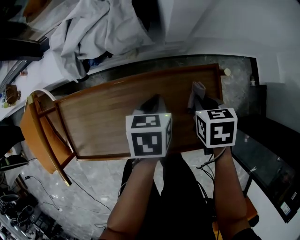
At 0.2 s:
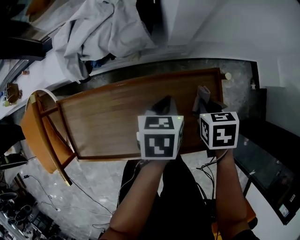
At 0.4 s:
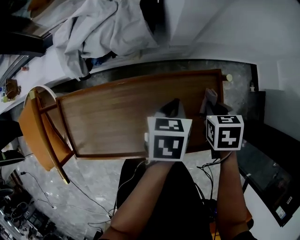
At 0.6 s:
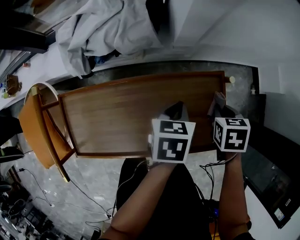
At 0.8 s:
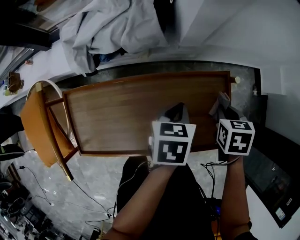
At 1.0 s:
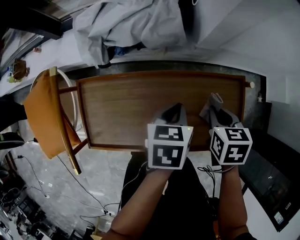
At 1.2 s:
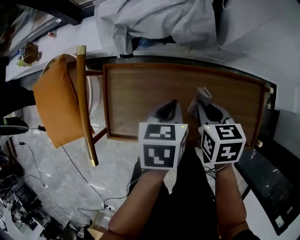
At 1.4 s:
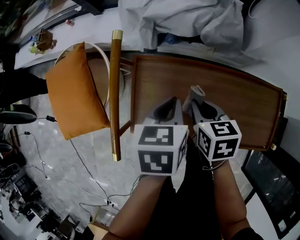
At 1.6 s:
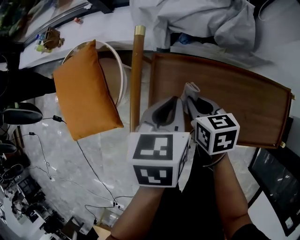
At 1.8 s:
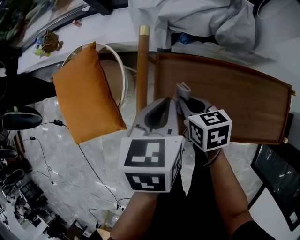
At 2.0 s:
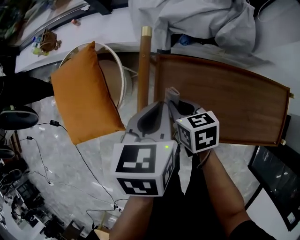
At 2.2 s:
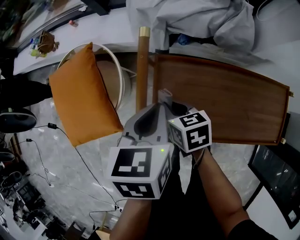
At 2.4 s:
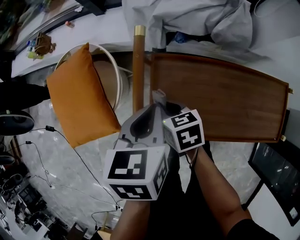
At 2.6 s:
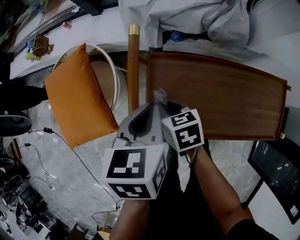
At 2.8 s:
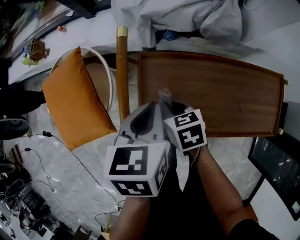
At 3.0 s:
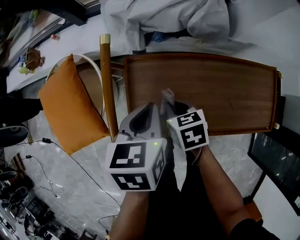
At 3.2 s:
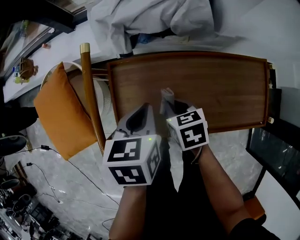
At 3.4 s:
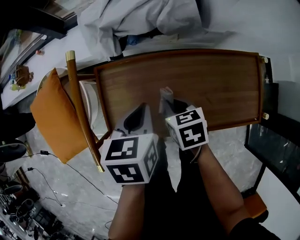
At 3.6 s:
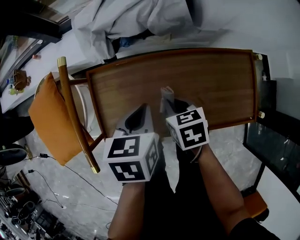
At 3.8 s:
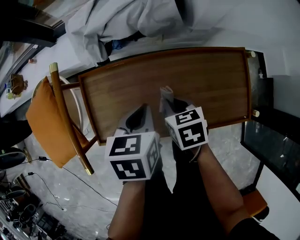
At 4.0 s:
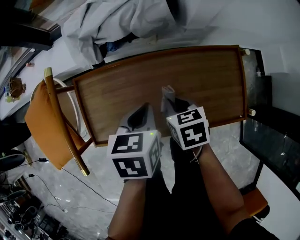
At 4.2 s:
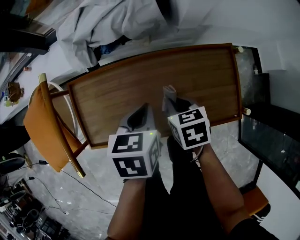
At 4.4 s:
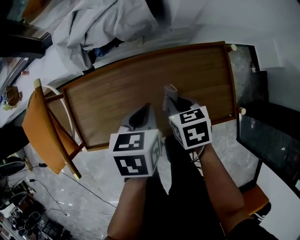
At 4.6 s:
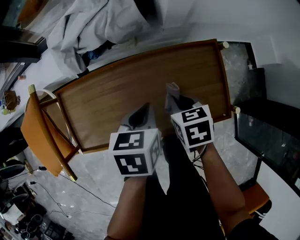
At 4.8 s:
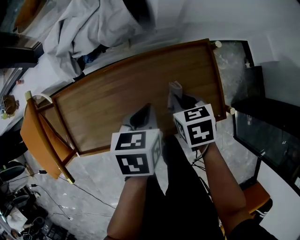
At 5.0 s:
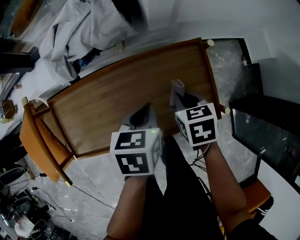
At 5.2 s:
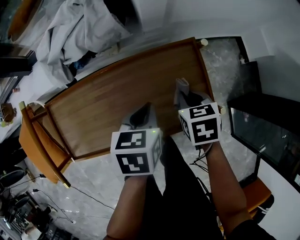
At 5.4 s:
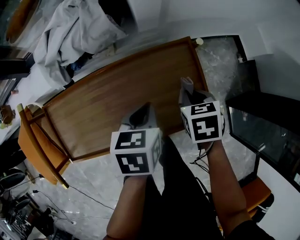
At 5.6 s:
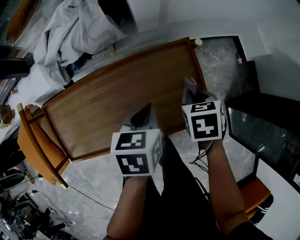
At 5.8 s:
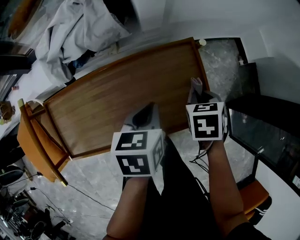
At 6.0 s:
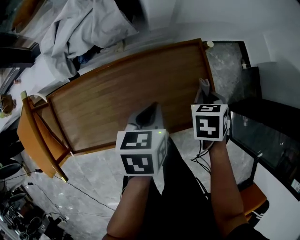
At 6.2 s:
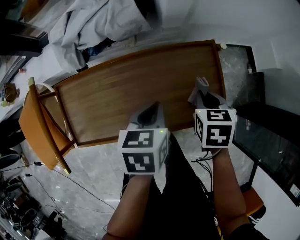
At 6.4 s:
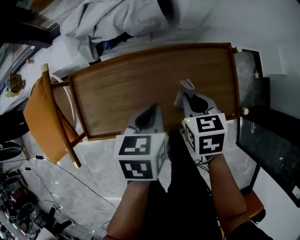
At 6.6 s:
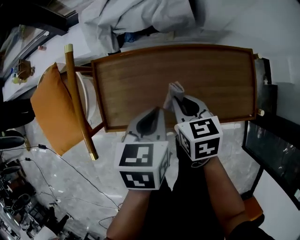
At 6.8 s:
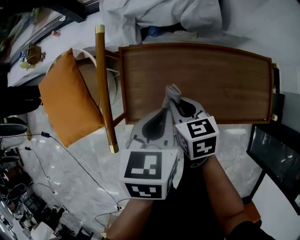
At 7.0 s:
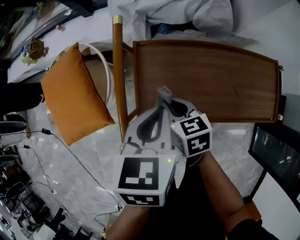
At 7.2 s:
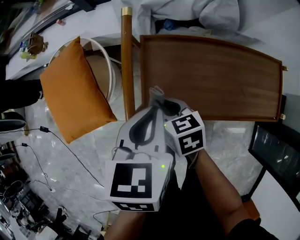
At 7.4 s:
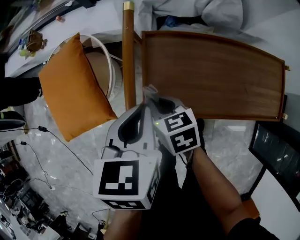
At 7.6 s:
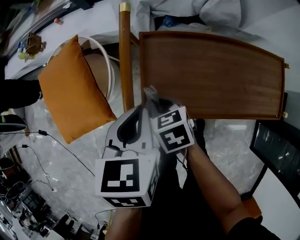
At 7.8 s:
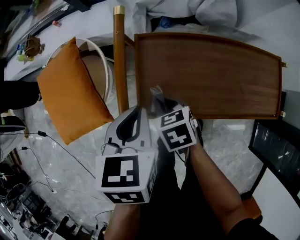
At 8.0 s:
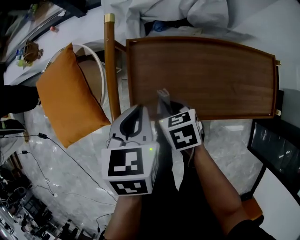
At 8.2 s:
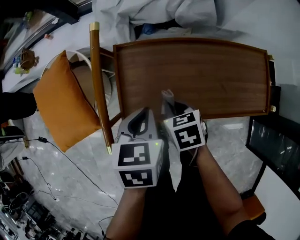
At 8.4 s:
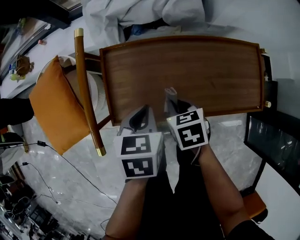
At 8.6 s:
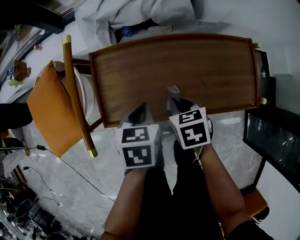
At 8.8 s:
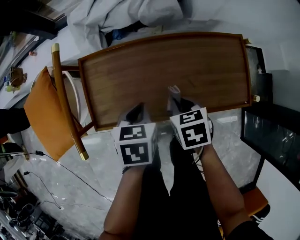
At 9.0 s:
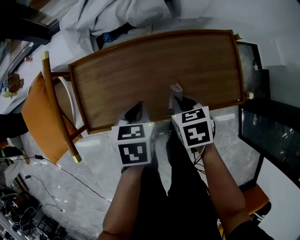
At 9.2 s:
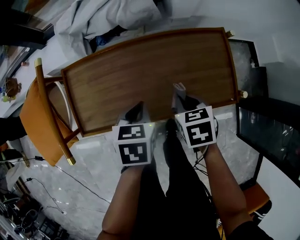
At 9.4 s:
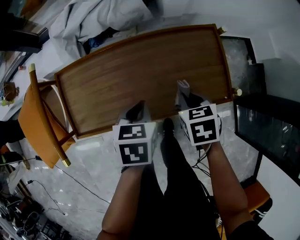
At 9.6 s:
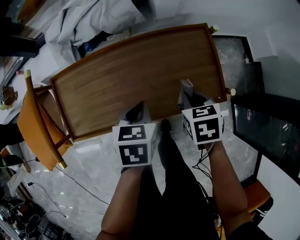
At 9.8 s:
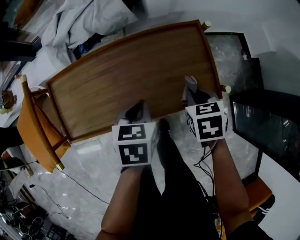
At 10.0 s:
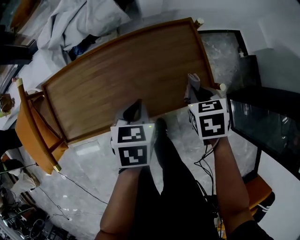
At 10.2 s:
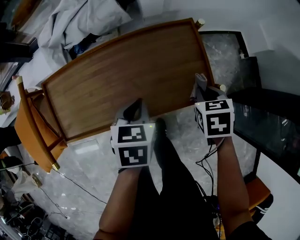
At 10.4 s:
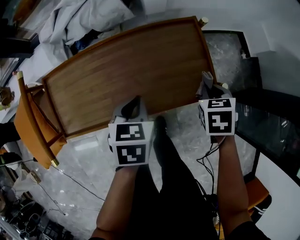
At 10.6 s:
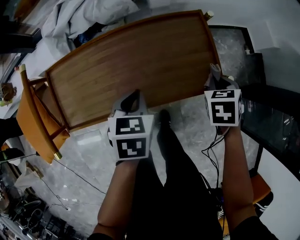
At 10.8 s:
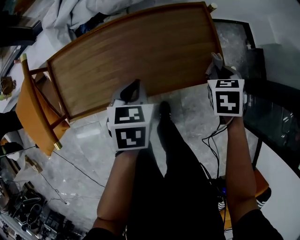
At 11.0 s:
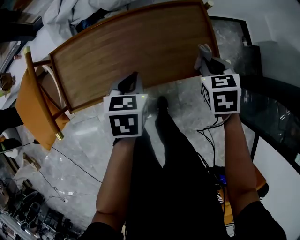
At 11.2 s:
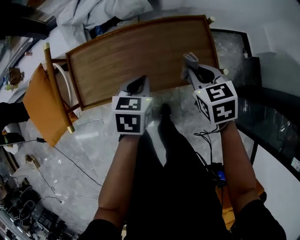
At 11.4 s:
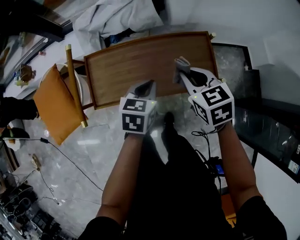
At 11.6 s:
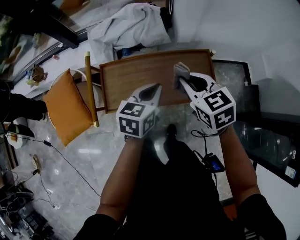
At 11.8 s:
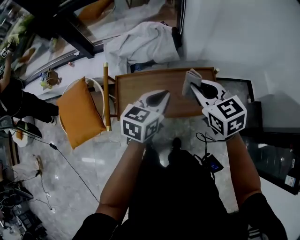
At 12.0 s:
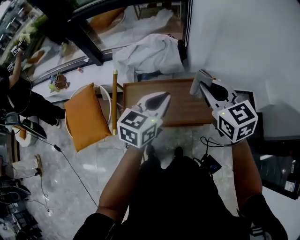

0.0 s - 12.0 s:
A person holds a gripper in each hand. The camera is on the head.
0.0 s - 1.6 s: The left gripper changes place by roughly 35 cm; the right gripper shifts by roughly 40 cm, and swivels approximately 30 degrees.
1.6 s - 3.0 s: The right gripper reaches approximately 10 cm to the left, then returns.
3.0 s - 4.4 s: Both grippers travel together to the right, some 25 cm.
4.4 s - 6.0 s: The right gripper ends up about 20 cm from where it was, and rotates some 30 degrees. Meanwhile the left gripper ends up approximately 10 cm from where it was.
6.0 s - 7.6 s: The two grippers travel together, some 50 cm. The right gripper changes its angle by roughly 50 degrees. Meanwhile the left gripper rotates about 20 degrees.
7.6 s - 9.0 s: The left gripper goes about 25 cm to the right and downward; the right gripper moves to the right, about 30 cm, and swivels roughly 20 degrees.
9.0 s - 10.4 s: The left gripper goes some 15 cm to the right. Meanwhile the right gripper moves to the right, some 25 cm.
10.4 s - 12.0 s: The two grippers go roughly 35 cm upward. The left gripper angles its fingers upward, by roughly 40 degrees. The right gripper angles its fingers upward, by roughly 40 degrees.

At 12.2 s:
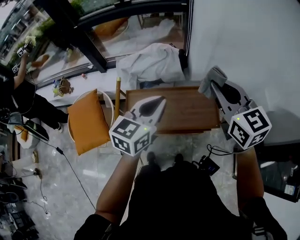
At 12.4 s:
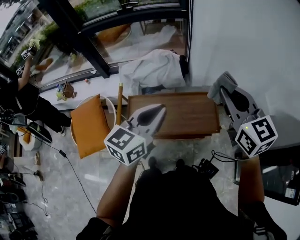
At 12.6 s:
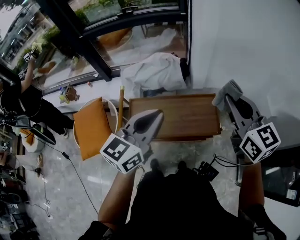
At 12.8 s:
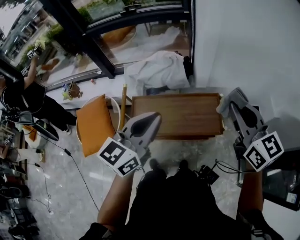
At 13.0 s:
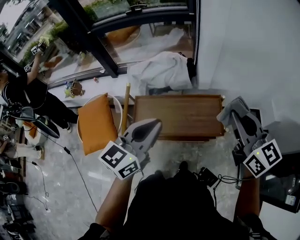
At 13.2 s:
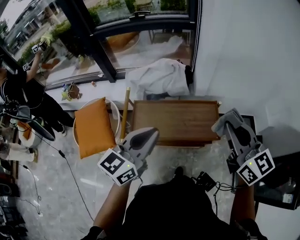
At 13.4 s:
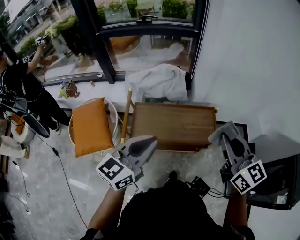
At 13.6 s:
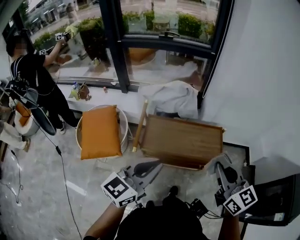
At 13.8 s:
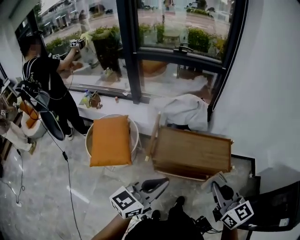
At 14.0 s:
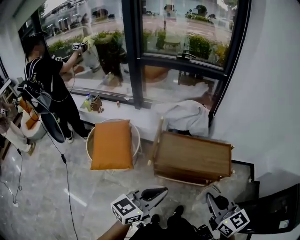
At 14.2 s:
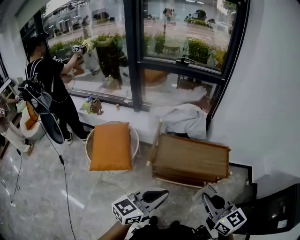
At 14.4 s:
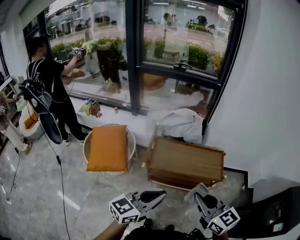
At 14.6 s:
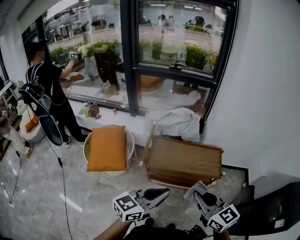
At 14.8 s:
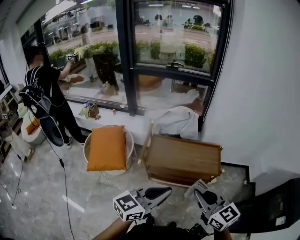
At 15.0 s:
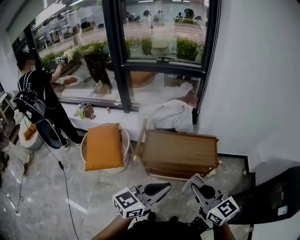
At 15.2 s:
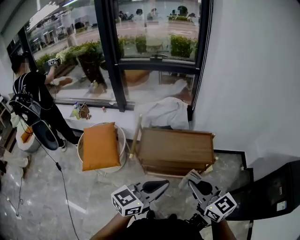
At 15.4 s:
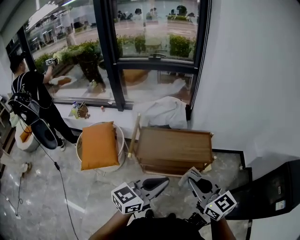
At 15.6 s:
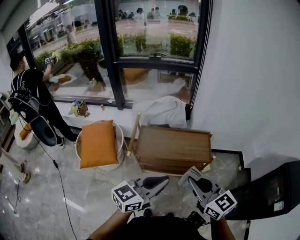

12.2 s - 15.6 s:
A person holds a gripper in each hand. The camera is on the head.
12.2 s - 13.8 s: The left gripper goes roughly 30 cm backward and to the left, while the right gripper moves backward, some 25 cm.
13.8 s - 15.6 s: The left gripper shifts some 15 cm to the right and backward; the right gripper travels backward by about 5 cm.

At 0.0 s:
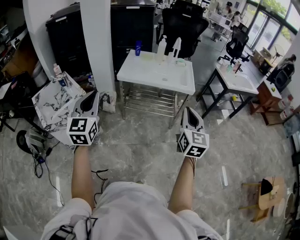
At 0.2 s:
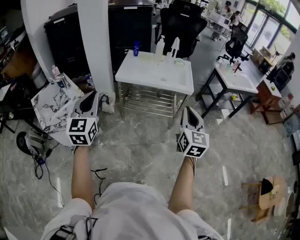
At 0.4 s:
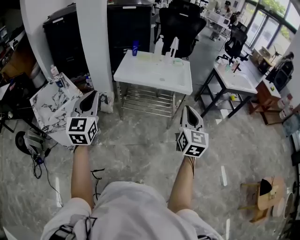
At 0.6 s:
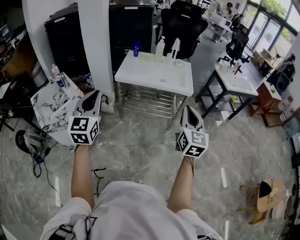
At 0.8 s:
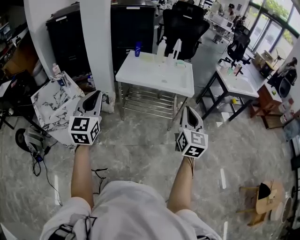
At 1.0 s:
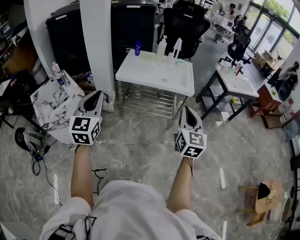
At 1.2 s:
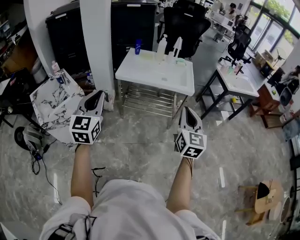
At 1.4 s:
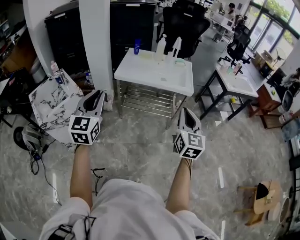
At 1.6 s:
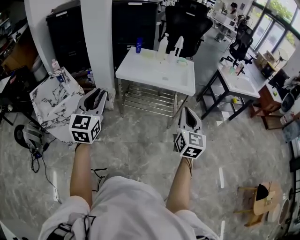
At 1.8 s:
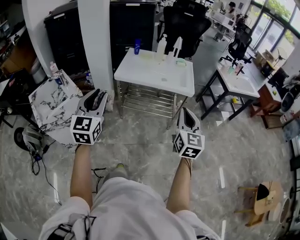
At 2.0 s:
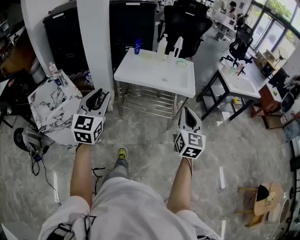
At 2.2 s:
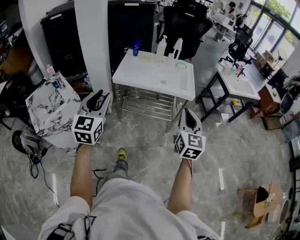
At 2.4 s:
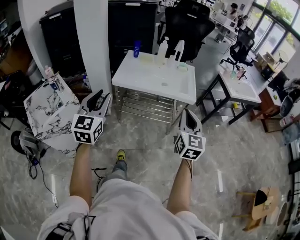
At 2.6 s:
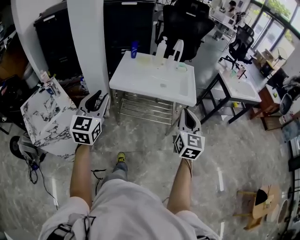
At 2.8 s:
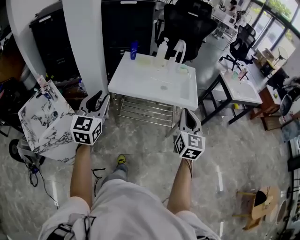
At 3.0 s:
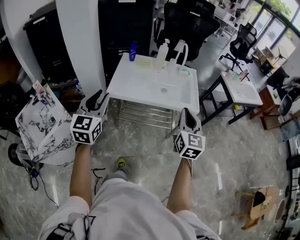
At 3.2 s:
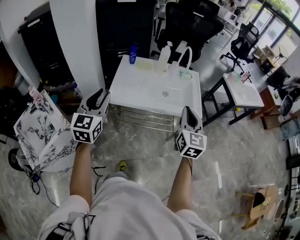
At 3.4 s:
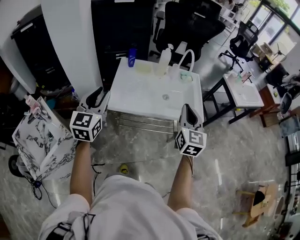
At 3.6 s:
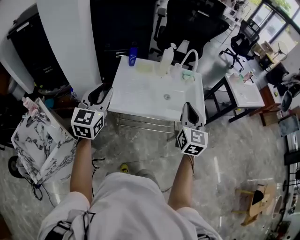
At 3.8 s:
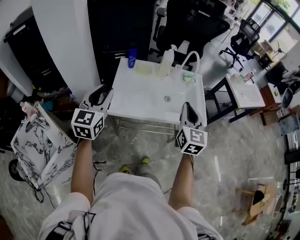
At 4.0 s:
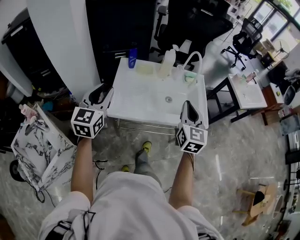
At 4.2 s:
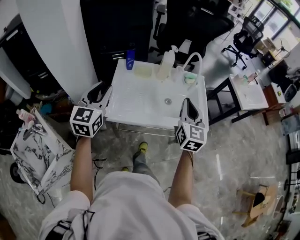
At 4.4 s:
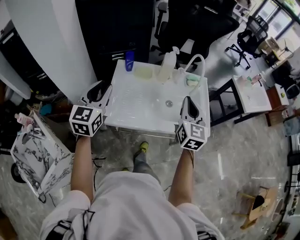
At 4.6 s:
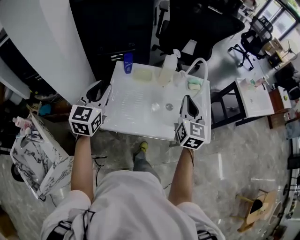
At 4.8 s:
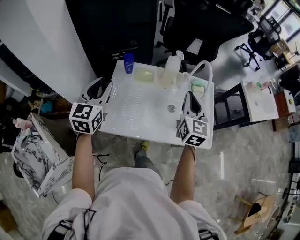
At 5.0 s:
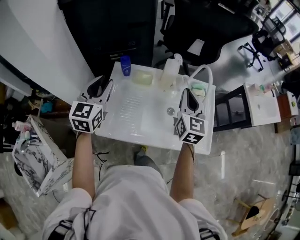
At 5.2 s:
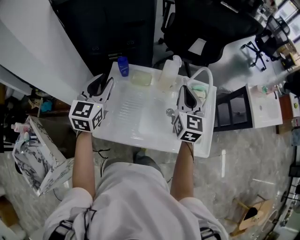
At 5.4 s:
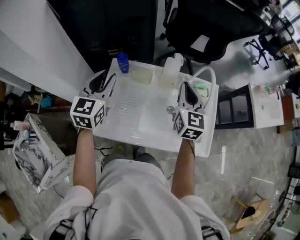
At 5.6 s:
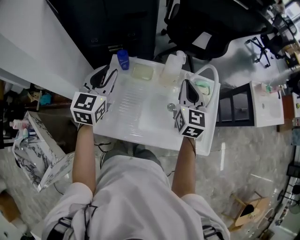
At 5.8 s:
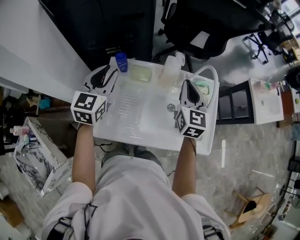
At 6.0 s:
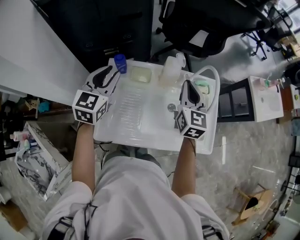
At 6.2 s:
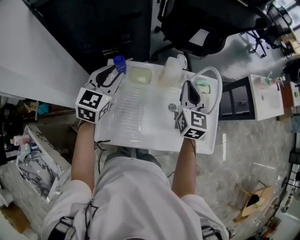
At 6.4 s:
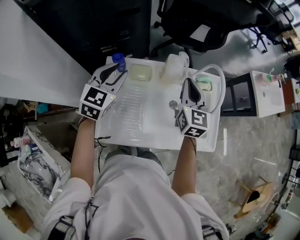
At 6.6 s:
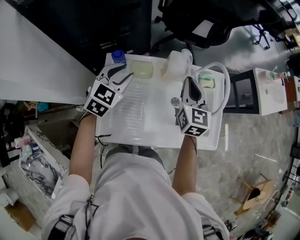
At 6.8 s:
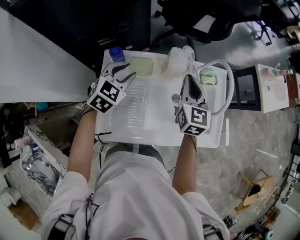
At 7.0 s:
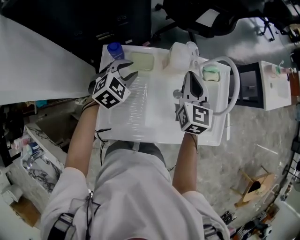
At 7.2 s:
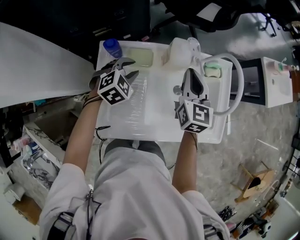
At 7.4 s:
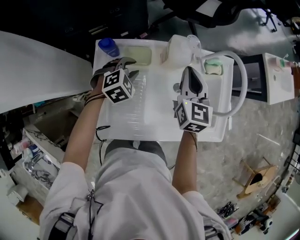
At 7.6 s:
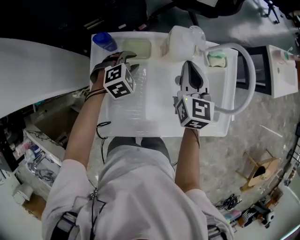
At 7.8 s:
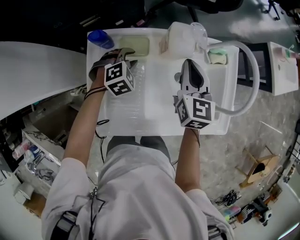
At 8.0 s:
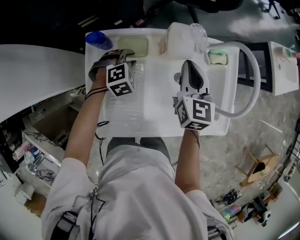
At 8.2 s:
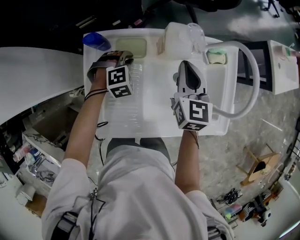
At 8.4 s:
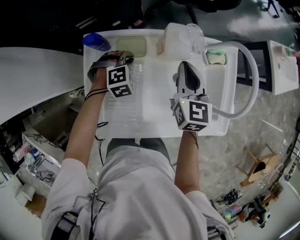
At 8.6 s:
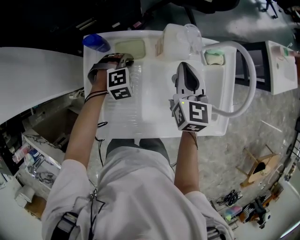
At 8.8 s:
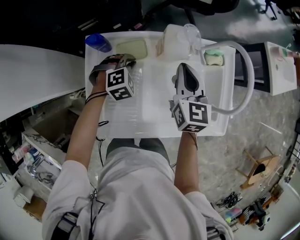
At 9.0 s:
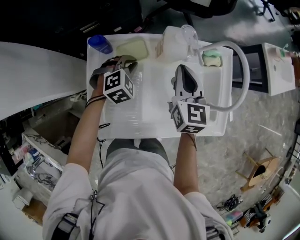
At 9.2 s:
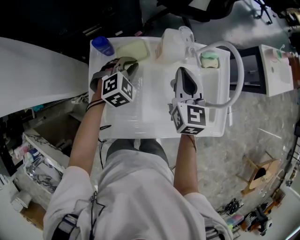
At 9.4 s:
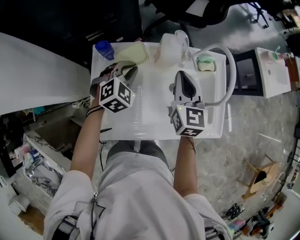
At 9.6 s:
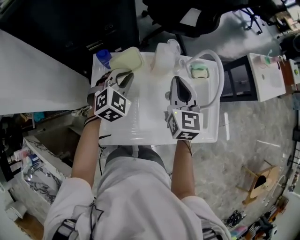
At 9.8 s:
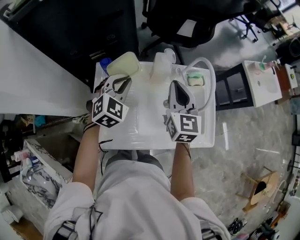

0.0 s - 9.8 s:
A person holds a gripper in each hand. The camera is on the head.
0.0 s - 1.4 s: The left gripper changes place by about 5 cm.
1.4 s - 2.8 s: Both grippers travel together forward, some 20 cm.
2.8 s - 4.2 s: Both grippers move forward, some 30 cm.
4.2 s - 5.6 s: The grippers both shift forward by about 25 cm.
5.6 s - 7.0 s: The right gripper moves downward, roughly 5 cm. The left gripper travels downward and forward by about 20 cm, and points its fingers some 30 degrees further downward.
7.0 s - 8.4 s: The right gripper travels downward by about 5 cm. Meanwhile the left gripper shifts about 15 cm downward, rotates some 30 degrees, and closes.
8.4 s - 9.8 s: The left gripper shifts roughly 25 cm upward, and rotates about 40 degrees. The right gripper heads upward, covering some 15 cm.
